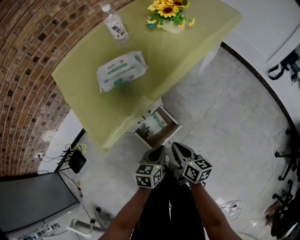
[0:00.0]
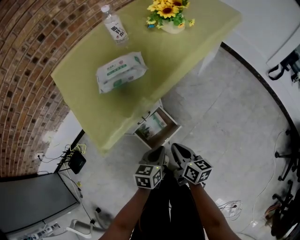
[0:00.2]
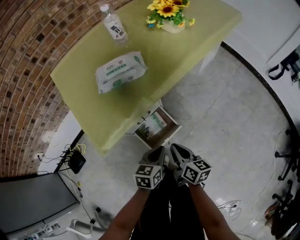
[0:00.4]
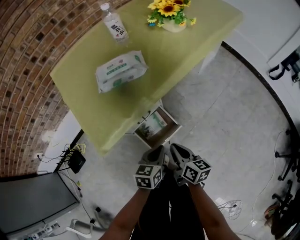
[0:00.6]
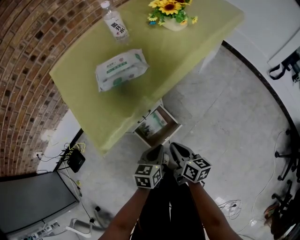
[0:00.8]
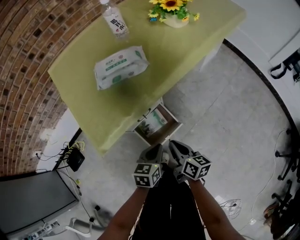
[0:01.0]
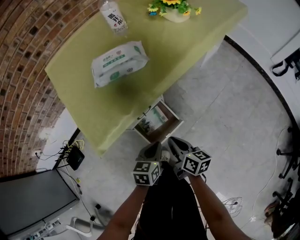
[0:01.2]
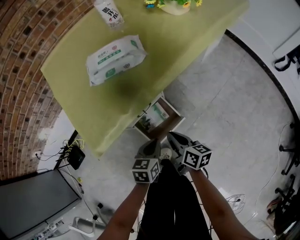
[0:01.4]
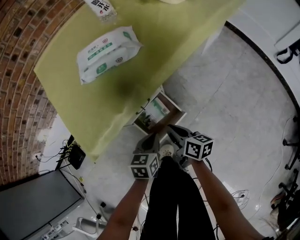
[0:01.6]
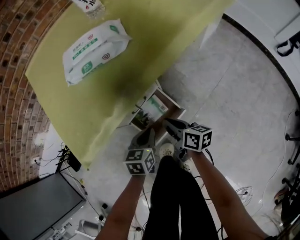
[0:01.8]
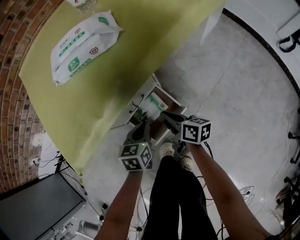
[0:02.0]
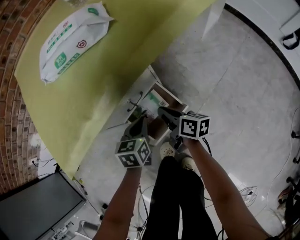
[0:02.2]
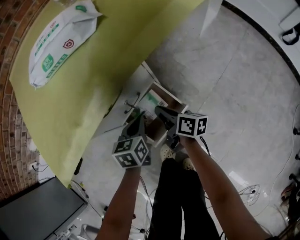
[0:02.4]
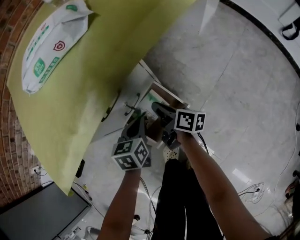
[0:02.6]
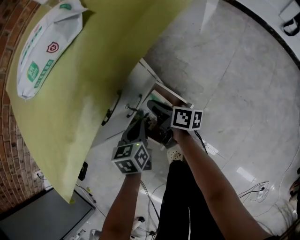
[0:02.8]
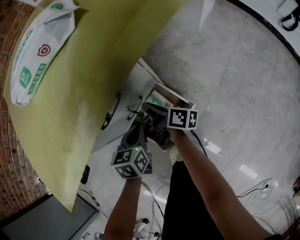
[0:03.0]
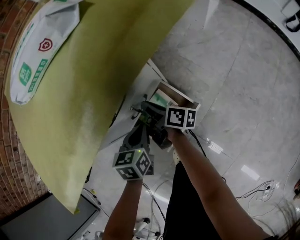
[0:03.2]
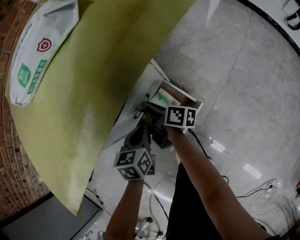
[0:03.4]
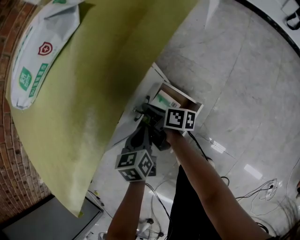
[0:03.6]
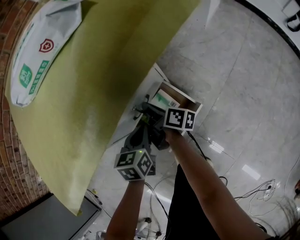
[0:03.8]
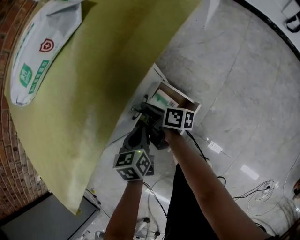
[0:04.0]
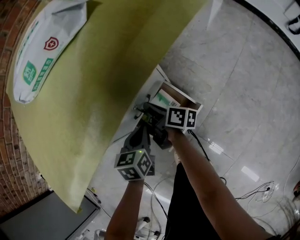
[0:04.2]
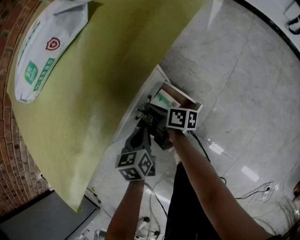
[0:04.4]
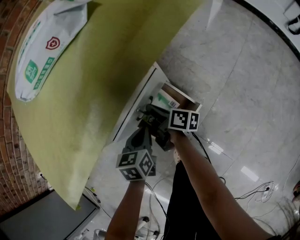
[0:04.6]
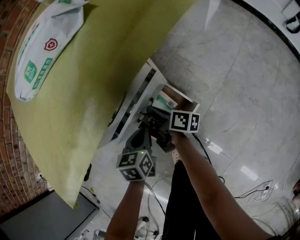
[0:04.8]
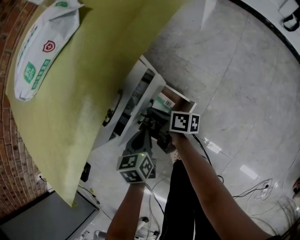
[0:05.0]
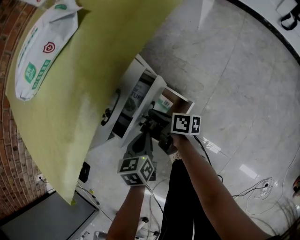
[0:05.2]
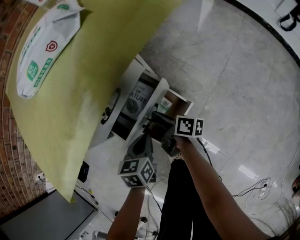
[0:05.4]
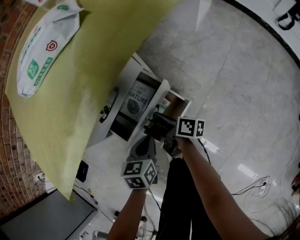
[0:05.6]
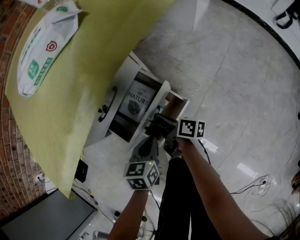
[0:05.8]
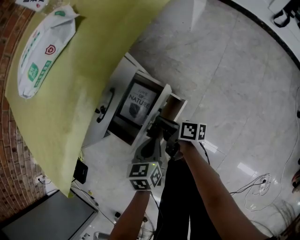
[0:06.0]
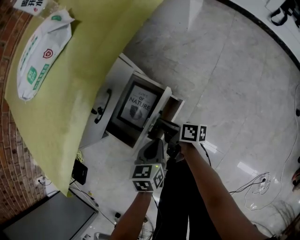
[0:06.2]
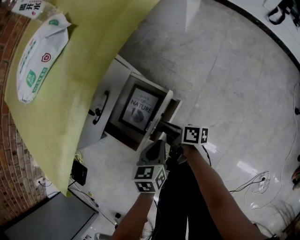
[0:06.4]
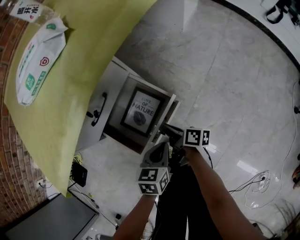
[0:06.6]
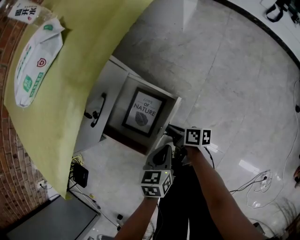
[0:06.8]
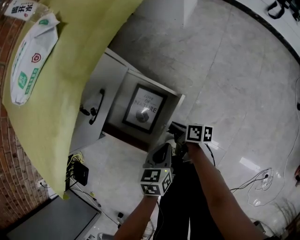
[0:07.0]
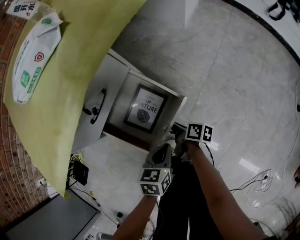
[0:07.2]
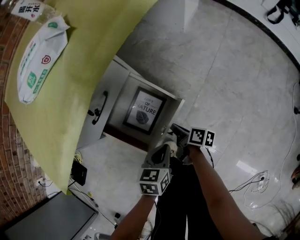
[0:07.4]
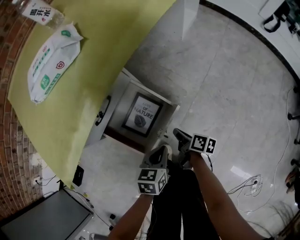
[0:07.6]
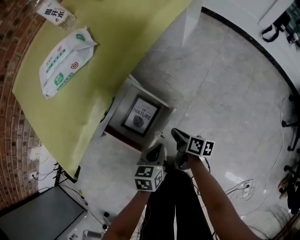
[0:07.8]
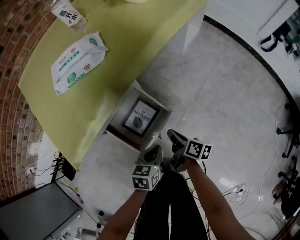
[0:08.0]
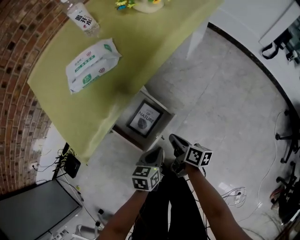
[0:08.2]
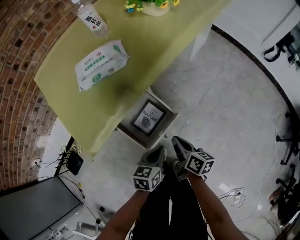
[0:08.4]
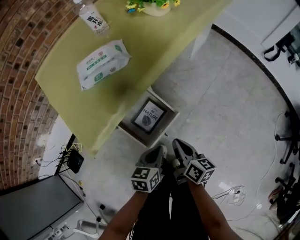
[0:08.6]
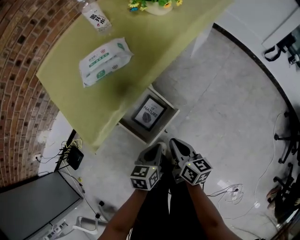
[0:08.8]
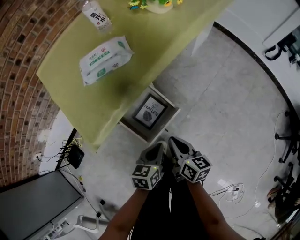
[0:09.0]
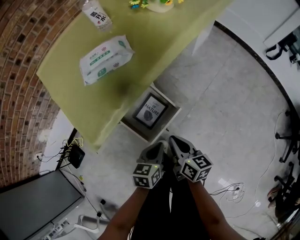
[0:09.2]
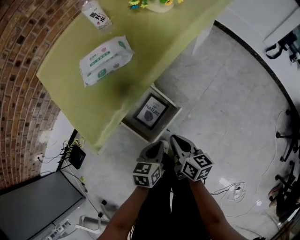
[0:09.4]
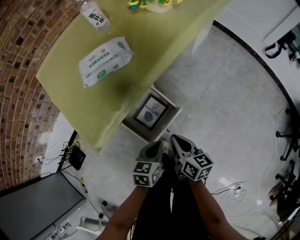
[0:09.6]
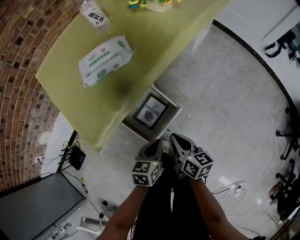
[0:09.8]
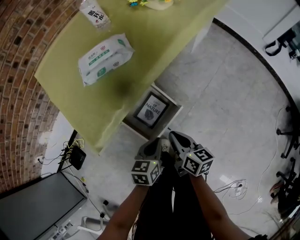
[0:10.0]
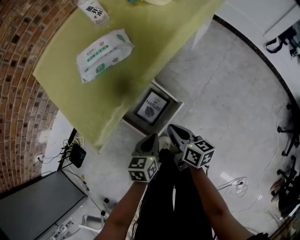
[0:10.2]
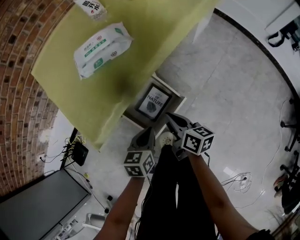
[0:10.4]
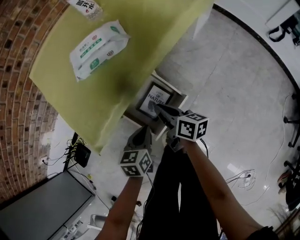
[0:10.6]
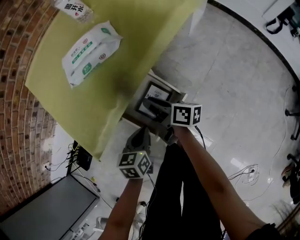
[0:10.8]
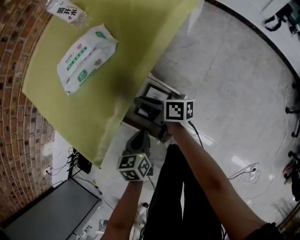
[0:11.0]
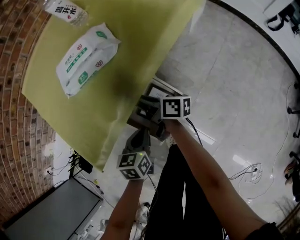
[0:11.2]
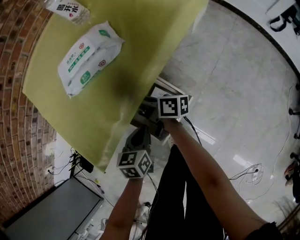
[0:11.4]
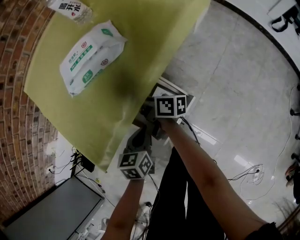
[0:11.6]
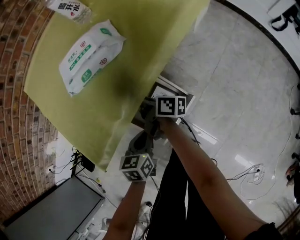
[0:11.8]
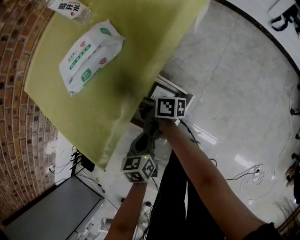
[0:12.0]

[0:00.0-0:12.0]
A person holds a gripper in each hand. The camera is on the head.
0.0 to 1.6 s: The right gripper travels downward and forward by some 10 cm; the left gripper heads downward, covering approximately 10 cm.
1.6 to 3.0 s: The grippers both shift downward and forward by roughly 15 cm. The right gripper swivels roughly 30 degrees.
3.0 to 4.4 s: There are only small adjustments of the grippers.
4.4 to 6.0 s: Both grippers travel together backward and to the right, some 10 cm.
6.0 to 7.6 s: The left gripper moves to the right, approximately 5 cm; the right gripper heads to the right and backward, covering roughly 15 cm.
7.6 to 9.0 s: The right gripper moves upward, about 25 cm, and turns by roughly 40 degrees. The left gripper is displaced upward by roughly 15 cm.
9.0 to 10.4 s: The left gripper shifts roughly 5 cm to the left. Meanwhile the right gripper heads forward, covering roughly 5 cm.
10.4 to 12.0 s: The right gripper travels forward and to the left by some 20 cm, swivels some 30 degrees, and opens and closes again, while the left gripper moves approximately 5 cm.

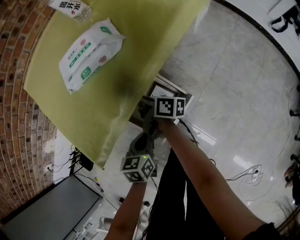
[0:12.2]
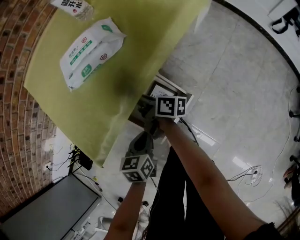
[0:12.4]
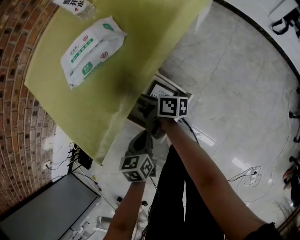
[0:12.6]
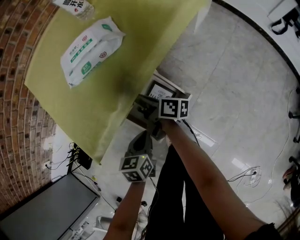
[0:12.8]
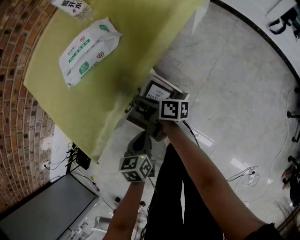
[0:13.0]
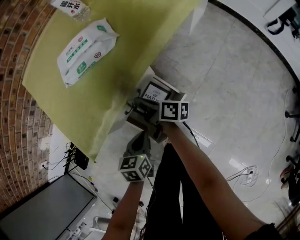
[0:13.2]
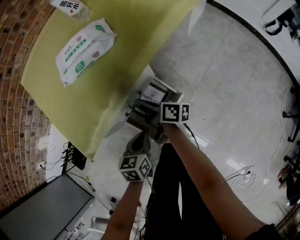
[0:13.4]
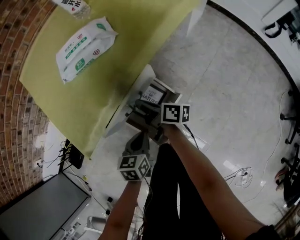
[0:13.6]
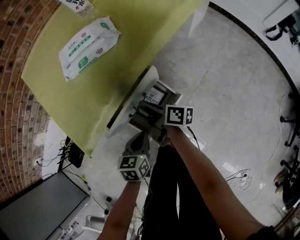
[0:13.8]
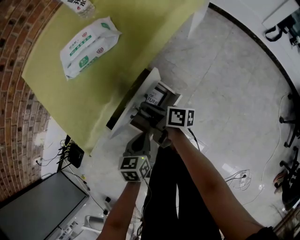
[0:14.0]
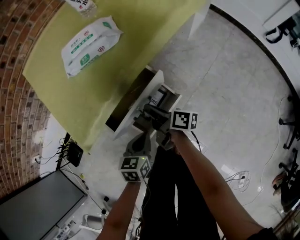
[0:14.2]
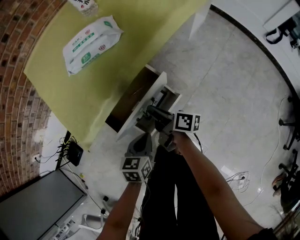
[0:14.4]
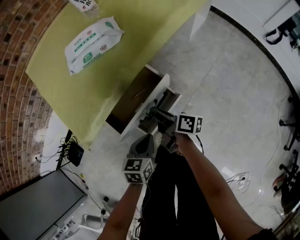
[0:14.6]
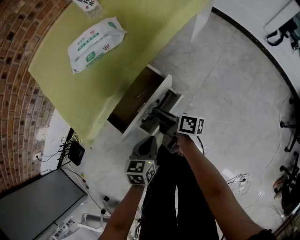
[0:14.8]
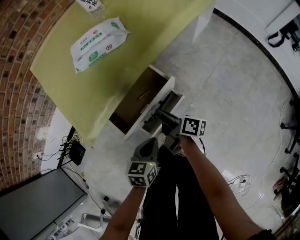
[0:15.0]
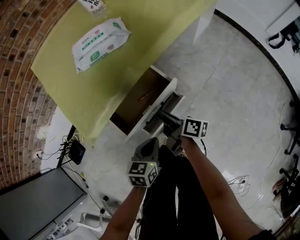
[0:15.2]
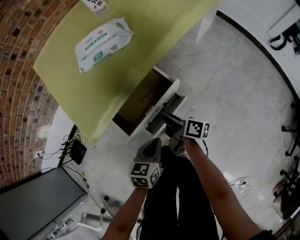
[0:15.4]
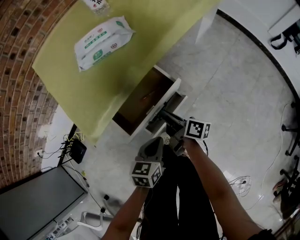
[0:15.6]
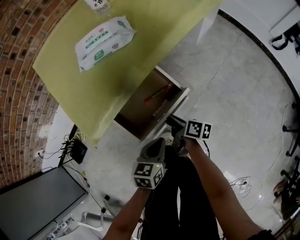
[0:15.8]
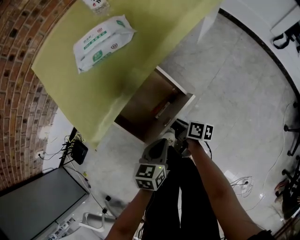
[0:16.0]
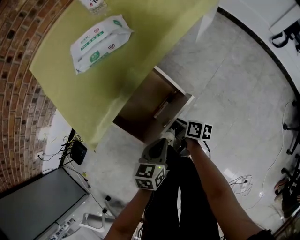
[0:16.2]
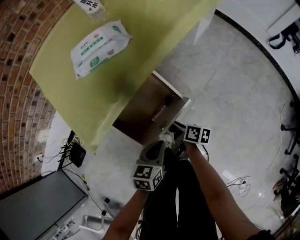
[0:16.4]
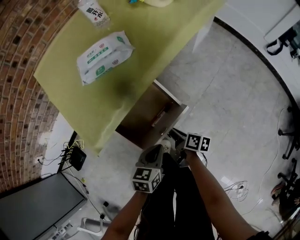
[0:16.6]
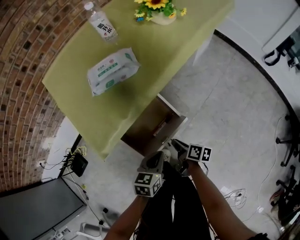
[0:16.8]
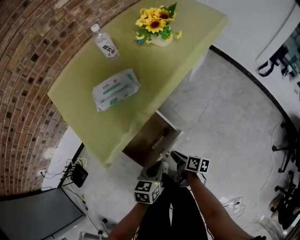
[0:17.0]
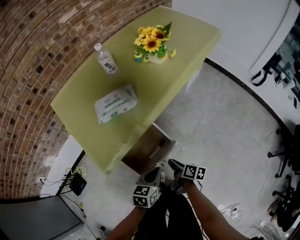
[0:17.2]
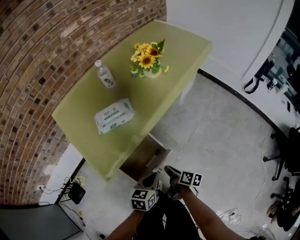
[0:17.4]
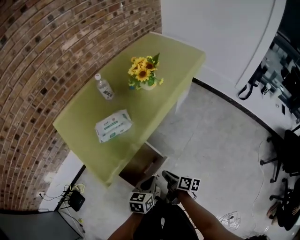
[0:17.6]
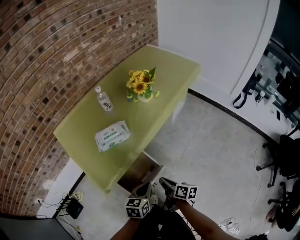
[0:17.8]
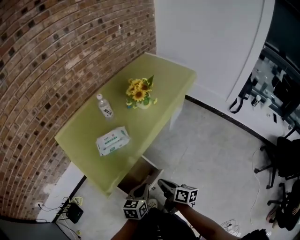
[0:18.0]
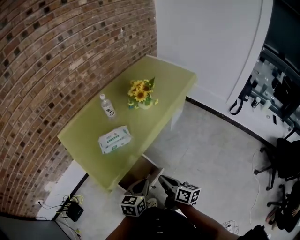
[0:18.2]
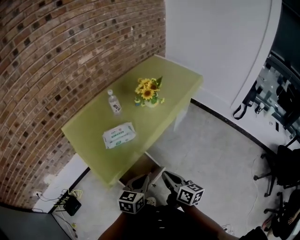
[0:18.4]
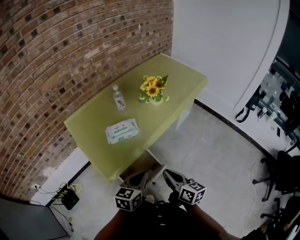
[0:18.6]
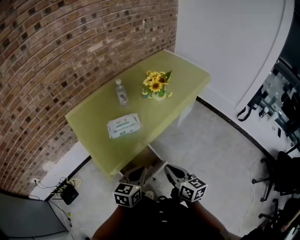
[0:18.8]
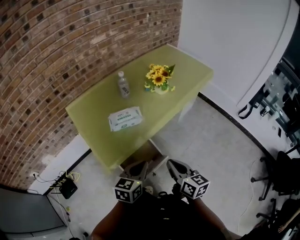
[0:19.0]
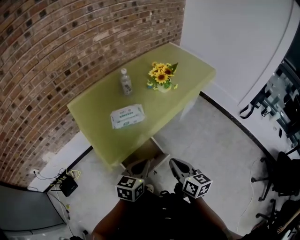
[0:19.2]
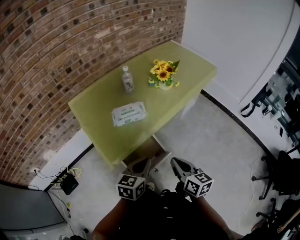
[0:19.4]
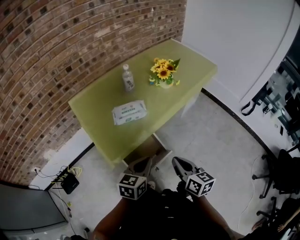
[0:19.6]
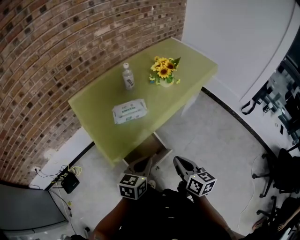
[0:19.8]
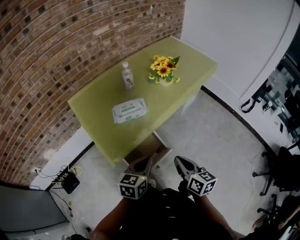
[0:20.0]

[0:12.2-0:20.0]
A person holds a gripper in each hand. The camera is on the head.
12.2 to 13.8 s: The right gripper shifts roughly 10 cm backward.
13.8 to 15.4 s: The two grippers go about 5 cm backward.
15.4 to 16.8 s: The right gripper is displaced backward by approximately 5 cm, and turns by approximately 20 degrees.
16.8 to 18.4 s: Both grippers move upward, roughly 30 cm. The right gripper turns by some 40 degrees.
18.4 to 20.0 s: The grippers stay close to where they were, moving slightly.

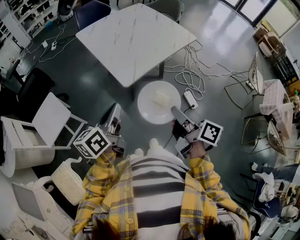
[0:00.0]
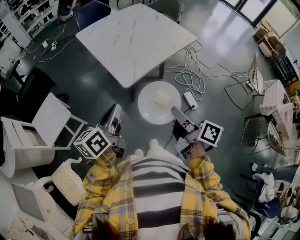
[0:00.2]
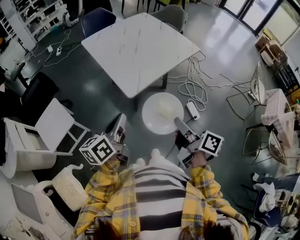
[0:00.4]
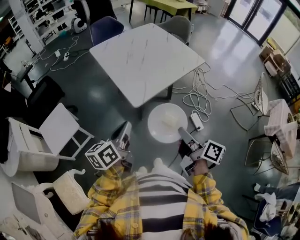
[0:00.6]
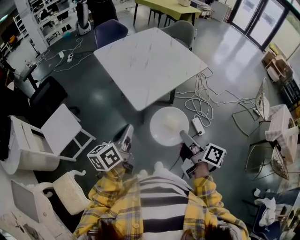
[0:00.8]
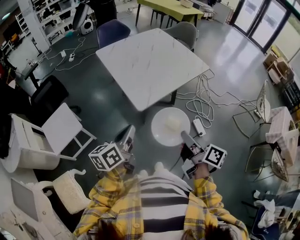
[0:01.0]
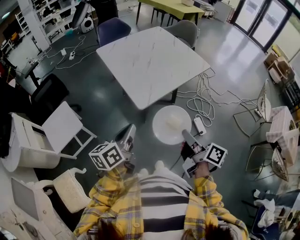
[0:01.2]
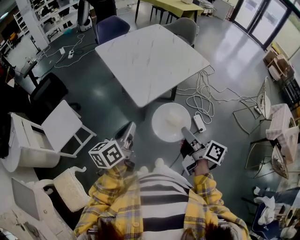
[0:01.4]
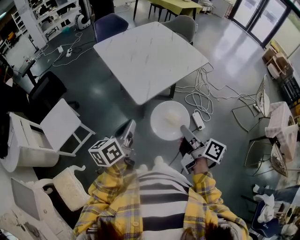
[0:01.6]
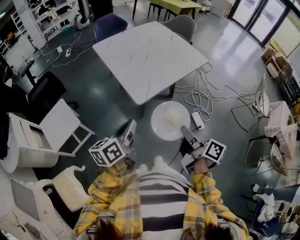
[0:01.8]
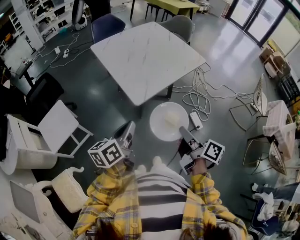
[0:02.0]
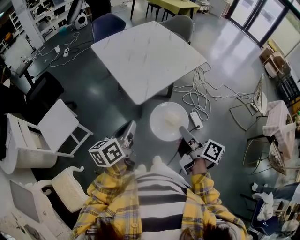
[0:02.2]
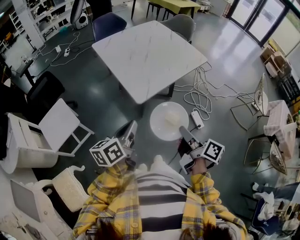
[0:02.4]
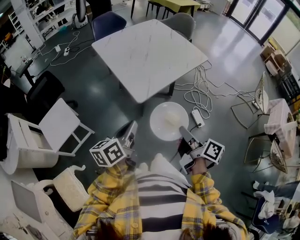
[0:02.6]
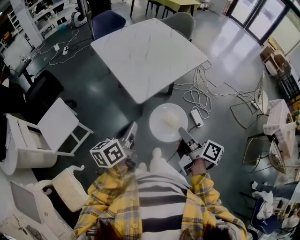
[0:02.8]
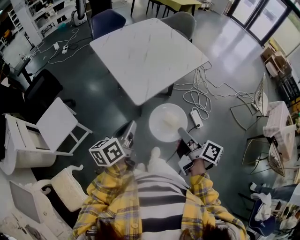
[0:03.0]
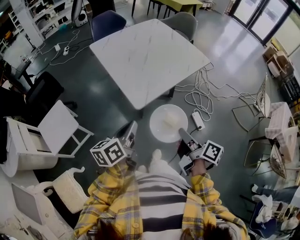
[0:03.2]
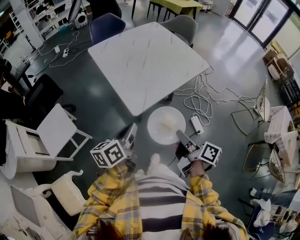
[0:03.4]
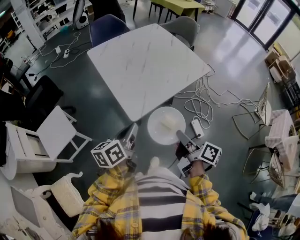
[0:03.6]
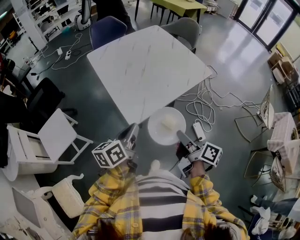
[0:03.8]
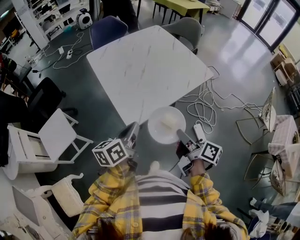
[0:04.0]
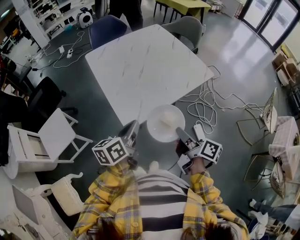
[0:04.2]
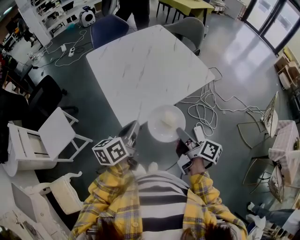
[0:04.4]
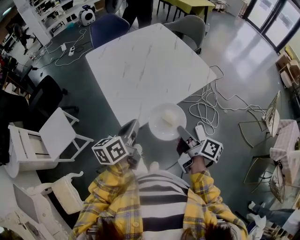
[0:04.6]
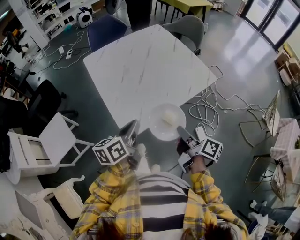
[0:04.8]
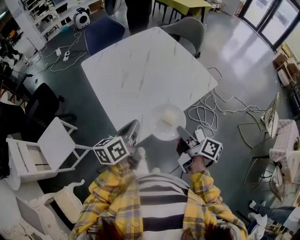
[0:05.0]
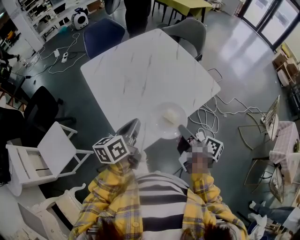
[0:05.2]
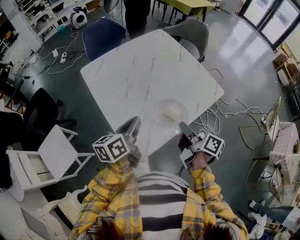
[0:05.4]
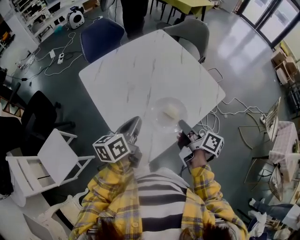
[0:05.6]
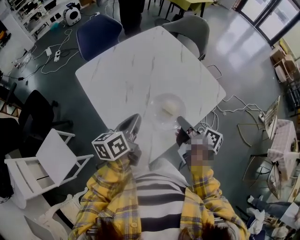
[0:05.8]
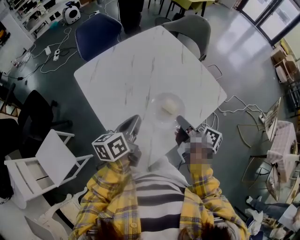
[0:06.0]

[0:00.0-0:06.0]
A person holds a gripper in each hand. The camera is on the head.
0.0 to 3.0 s: The grippers stay close to where they were, moving slightly.
3.0 to 4.4 s: Both grippers move forward and to the right, approximately 15 cm.
4.4 to 6.0 s: Both grippers move forward, roughly 25 cm.
